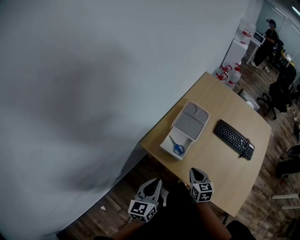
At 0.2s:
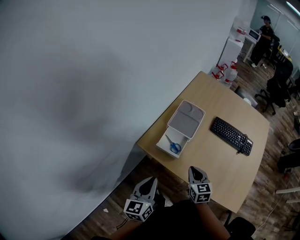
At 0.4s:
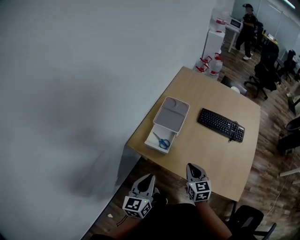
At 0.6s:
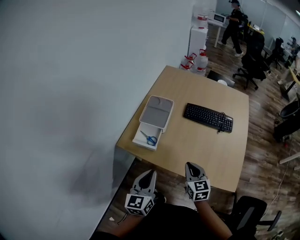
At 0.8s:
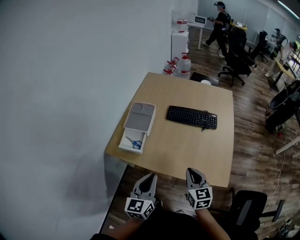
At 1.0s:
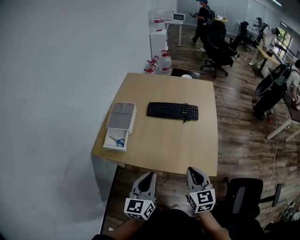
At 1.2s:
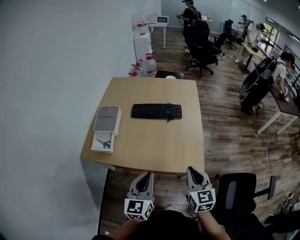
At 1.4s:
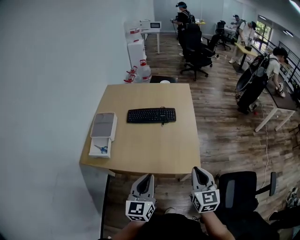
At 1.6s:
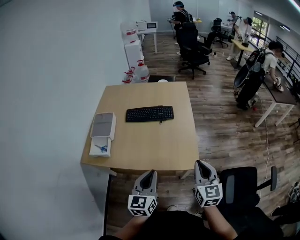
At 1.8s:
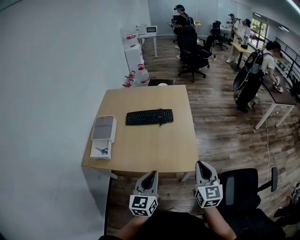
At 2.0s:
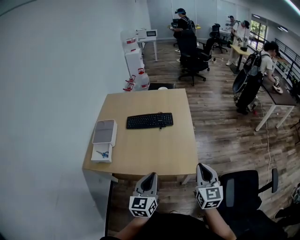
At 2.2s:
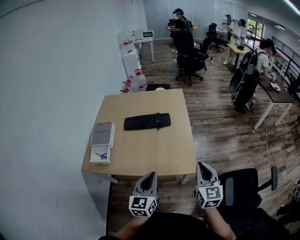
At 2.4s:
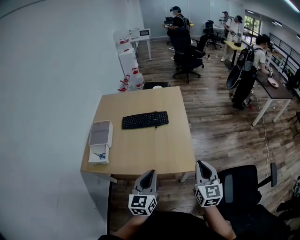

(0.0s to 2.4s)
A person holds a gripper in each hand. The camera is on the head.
0.0s - 1.2s: The left gripper moves roughly 40 cm, and rotates approximately 30 degrees. Meanwhile the right gripper ends up some 50 cm from where it was, and changes its angle by about 40 degrees.
1.2s - 2.4s: Both grippers move to the right, about 10 cm.

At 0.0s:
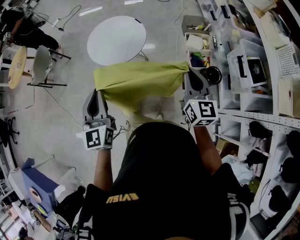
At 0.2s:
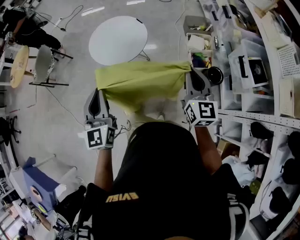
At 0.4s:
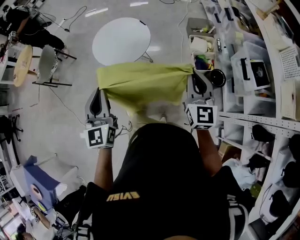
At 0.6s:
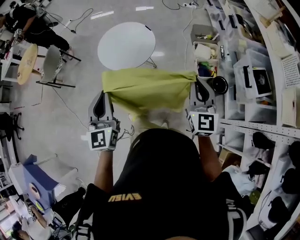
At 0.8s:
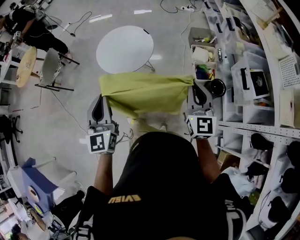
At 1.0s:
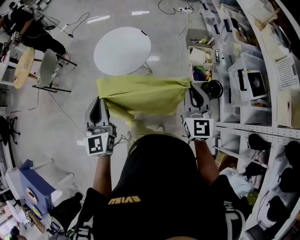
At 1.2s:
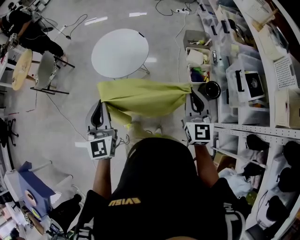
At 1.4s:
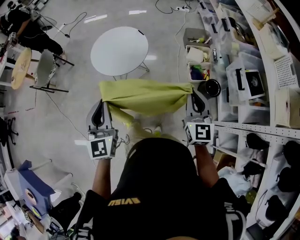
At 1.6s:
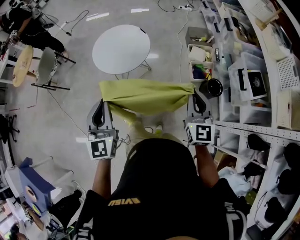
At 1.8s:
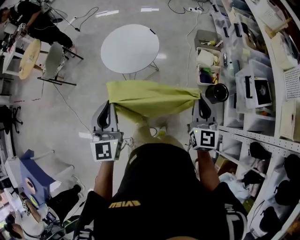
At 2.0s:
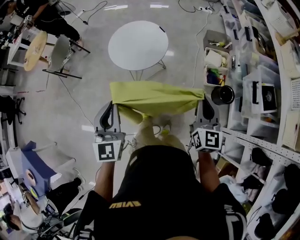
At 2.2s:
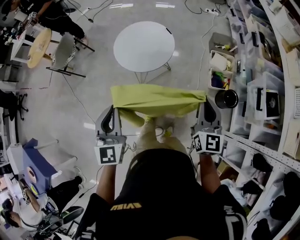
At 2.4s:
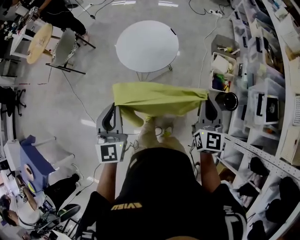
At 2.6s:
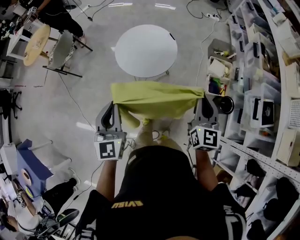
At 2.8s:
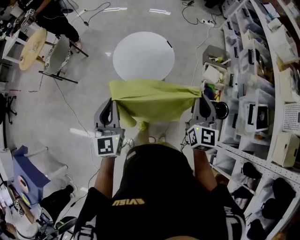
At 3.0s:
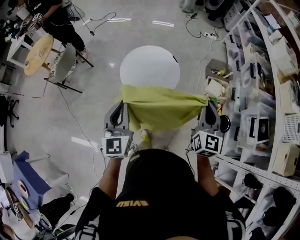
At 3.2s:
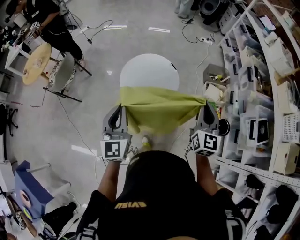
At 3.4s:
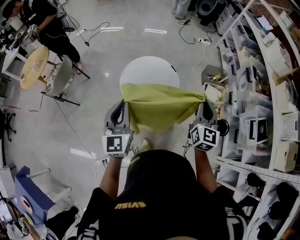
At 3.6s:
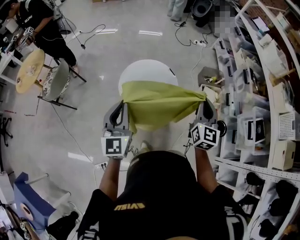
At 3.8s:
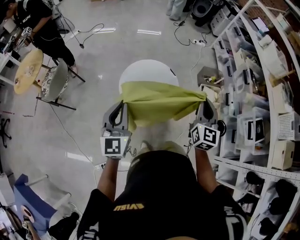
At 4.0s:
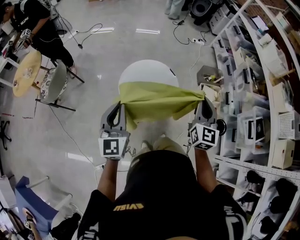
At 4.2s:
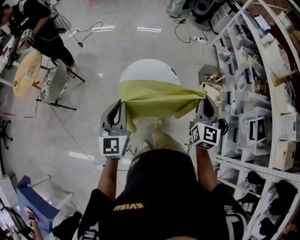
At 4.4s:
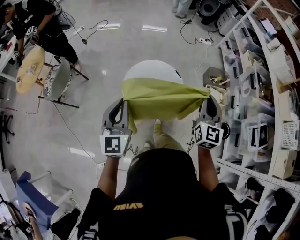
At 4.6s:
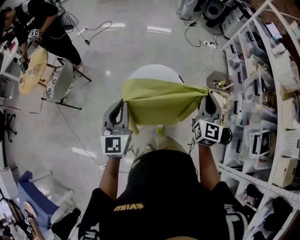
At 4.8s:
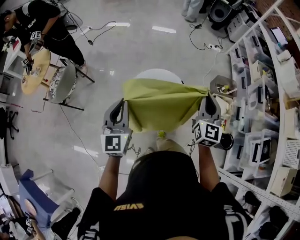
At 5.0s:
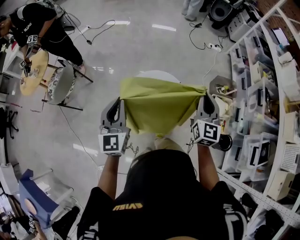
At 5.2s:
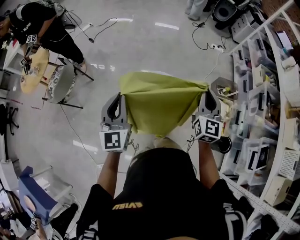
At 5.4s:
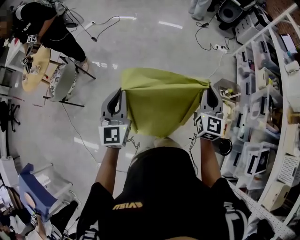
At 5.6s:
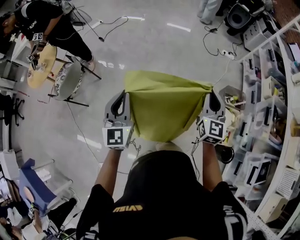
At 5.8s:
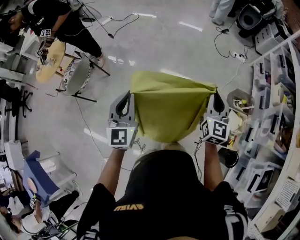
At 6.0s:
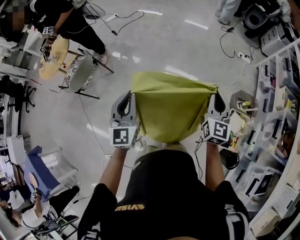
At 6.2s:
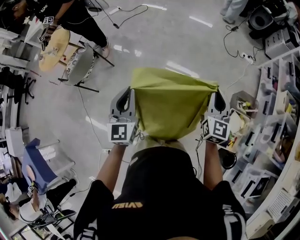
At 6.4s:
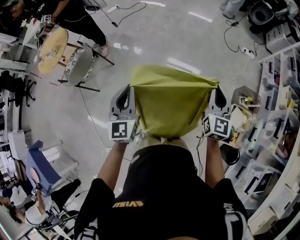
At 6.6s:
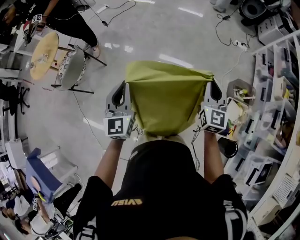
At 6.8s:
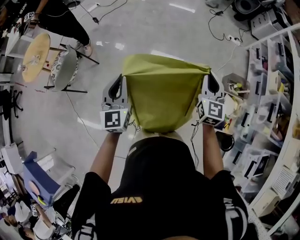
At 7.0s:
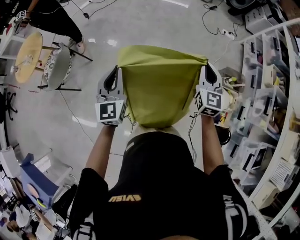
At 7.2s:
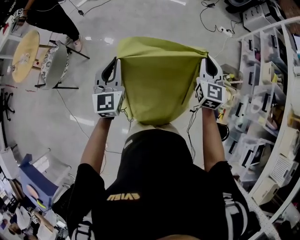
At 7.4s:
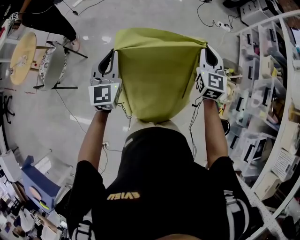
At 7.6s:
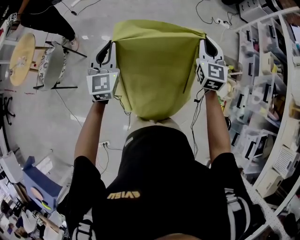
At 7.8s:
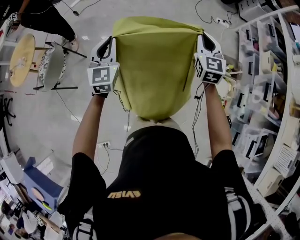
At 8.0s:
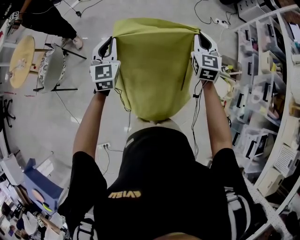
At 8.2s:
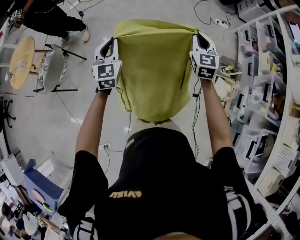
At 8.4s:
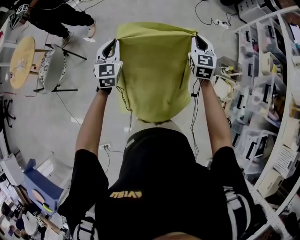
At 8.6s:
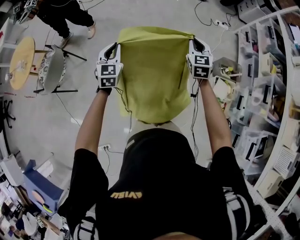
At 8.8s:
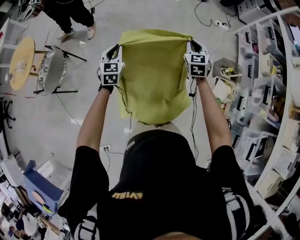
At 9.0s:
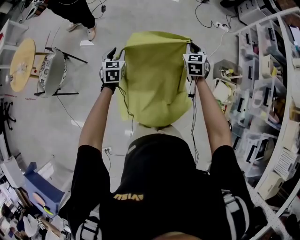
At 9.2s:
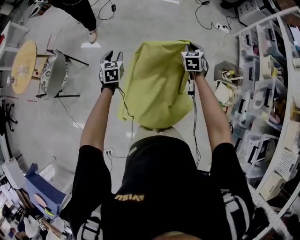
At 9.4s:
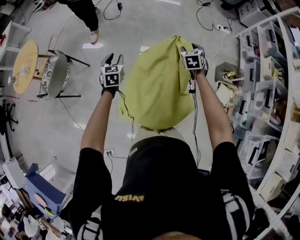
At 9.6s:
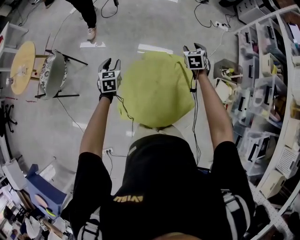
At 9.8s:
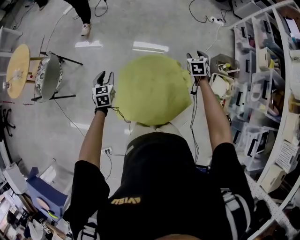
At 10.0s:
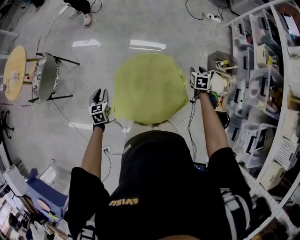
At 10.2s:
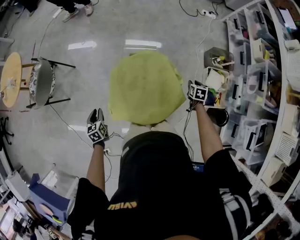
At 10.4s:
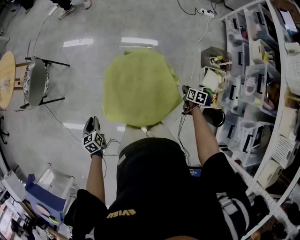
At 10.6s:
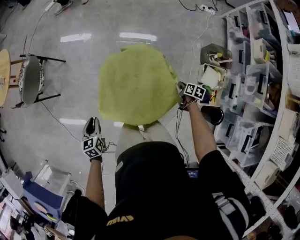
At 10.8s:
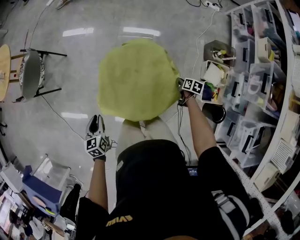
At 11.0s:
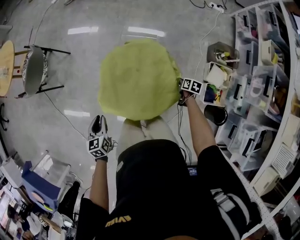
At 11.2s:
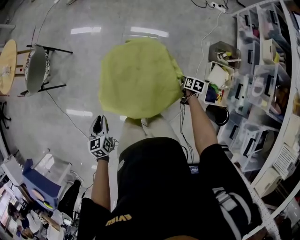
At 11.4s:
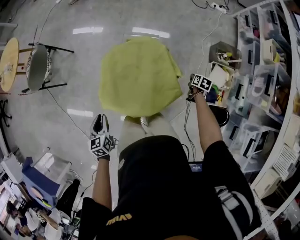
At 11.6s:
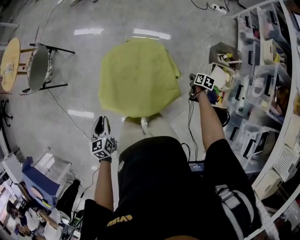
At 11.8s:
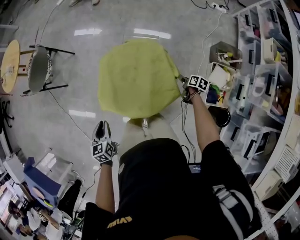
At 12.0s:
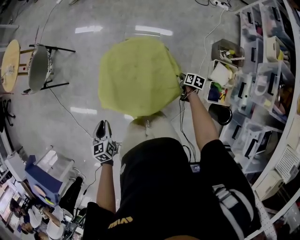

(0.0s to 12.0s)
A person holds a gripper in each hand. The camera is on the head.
0.0s - 1.6s: The grippers move only a little.
1.6s - 3.0s: Both grippers travel together forward and to the left, some 20 cm.
3.0s - 4.4s: Both grippers move forward and to the left, some 15 cm.
4.4s - 6.0s: The two grippers go roughly 25 cm forward.
6.0s - 7.6s: Both grippers move forward, about 10 cm.
7.6s - 9.0s: Both grippers move downward and forward, approximately 20 cm. The left gripper rotates about 30 degrees, and opens up. Meanwhile the right gripper changes its angle by roughly 20 degrees.
9.0s - 10.4s: The left gripper travels backward and downward by some 35 cm, and changes its angle by about 30 degrees; the right gripper heads downward, backward and to the right, covering approximately 40 cm, twists roughly 40 degrees clockwise, seen from behind, and opens, then closes once more.
10.4s - 12.0s: The right gripper heads downward, covering about 10 cm, goes to the right and returns, about 5 cm each way, and closes. Meanwhile the left gripper is displaced to the right and backward by about 15 cm.

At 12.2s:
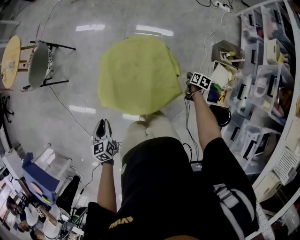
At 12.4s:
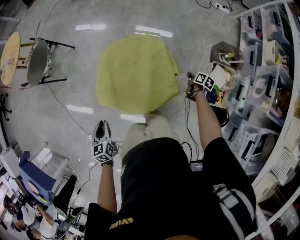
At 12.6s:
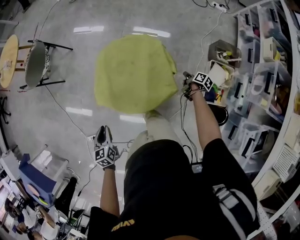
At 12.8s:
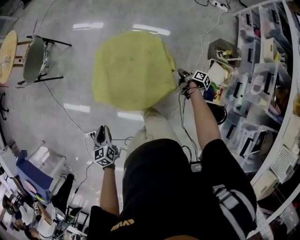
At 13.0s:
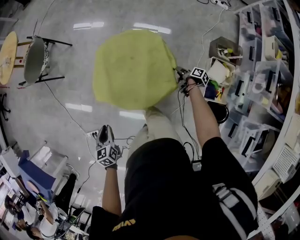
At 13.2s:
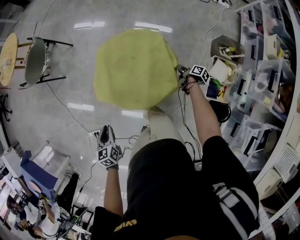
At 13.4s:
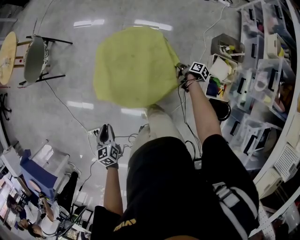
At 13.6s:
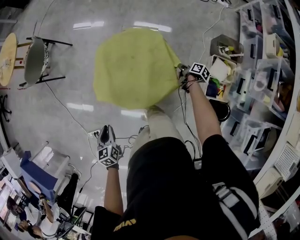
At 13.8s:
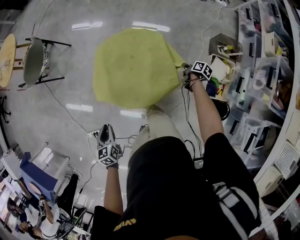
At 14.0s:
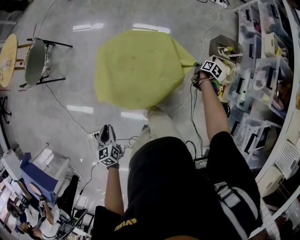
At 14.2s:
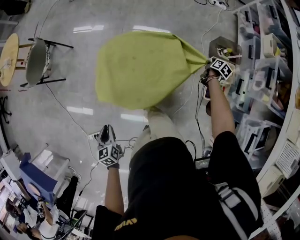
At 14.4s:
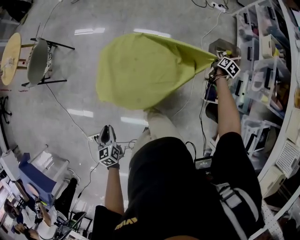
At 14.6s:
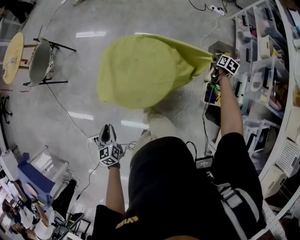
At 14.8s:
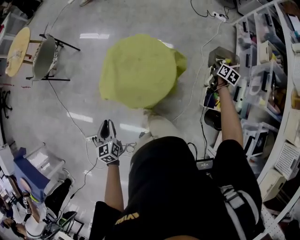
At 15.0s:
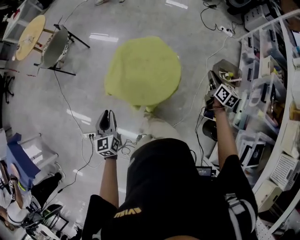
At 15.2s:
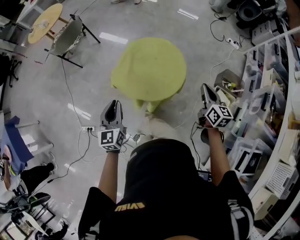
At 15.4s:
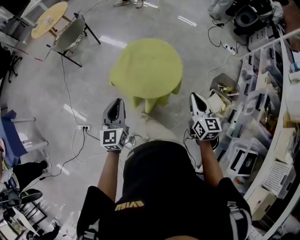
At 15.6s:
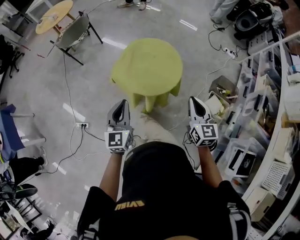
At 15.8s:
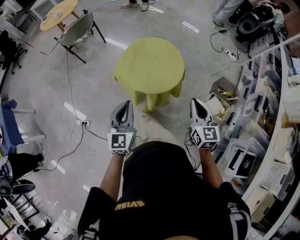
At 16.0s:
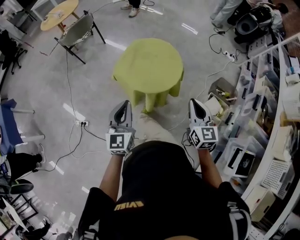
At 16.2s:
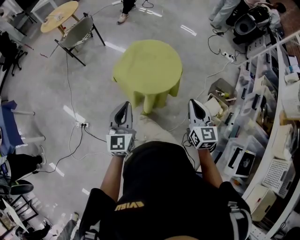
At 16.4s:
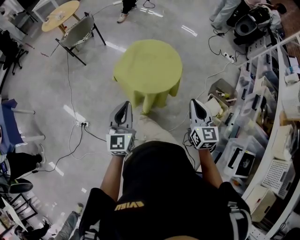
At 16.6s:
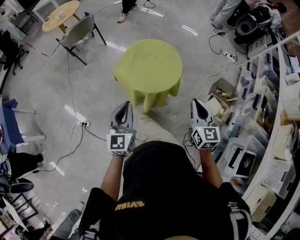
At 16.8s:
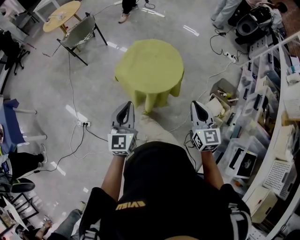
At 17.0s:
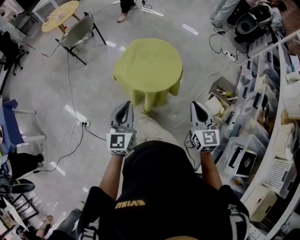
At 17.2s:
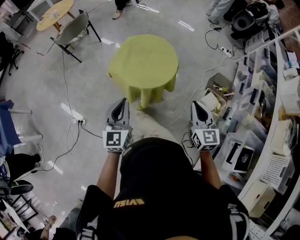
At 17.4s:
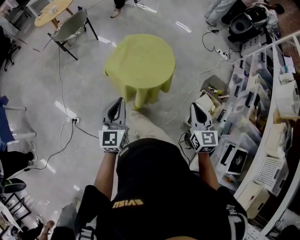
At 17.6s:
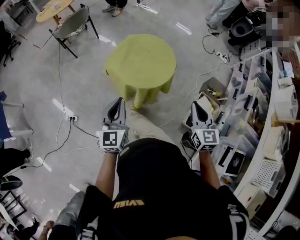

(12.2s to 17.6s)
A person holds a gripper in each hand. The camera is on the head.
12.2s - 13.6s: The right gripper rotates about 30 degrees, and opens and closes again; the left gripper goes some 10 cm backward.
13.6s - 15.0s: The right gripper moves upward, roughly 30 cm, rolls counterclockwise, seen from behind, by approximately 50 degrees, and opens and closes again, while the left gripper shifts roughly 10 cm upward, and rotates approximately 20 degrees.
15.0s - 16.2s: The left gripper is displaced backward and upward by about 25 cm. Meanwhile the right gripper heads backward, to the left and upward, covering roughly 35 cm, and turns by roughly 40 degrees.
16.2s - 17.6s: There are only small adjustments of the grippers.

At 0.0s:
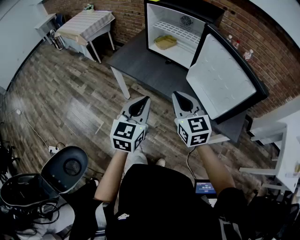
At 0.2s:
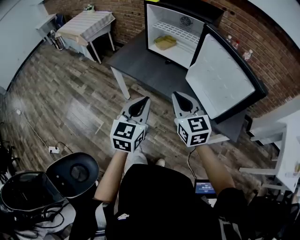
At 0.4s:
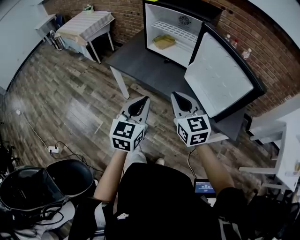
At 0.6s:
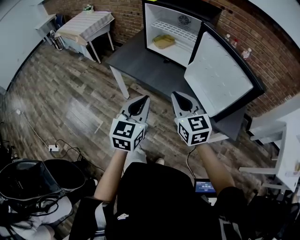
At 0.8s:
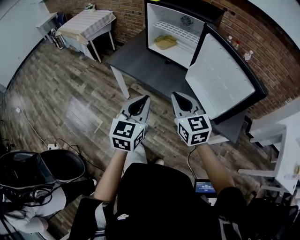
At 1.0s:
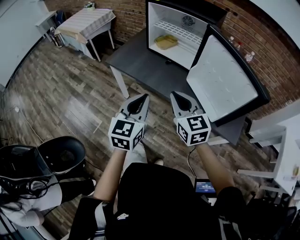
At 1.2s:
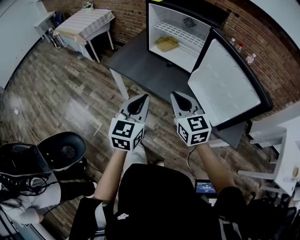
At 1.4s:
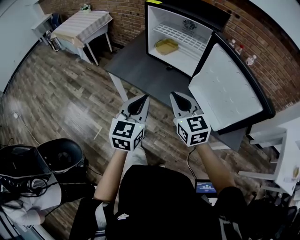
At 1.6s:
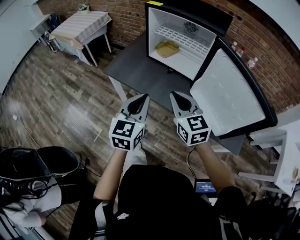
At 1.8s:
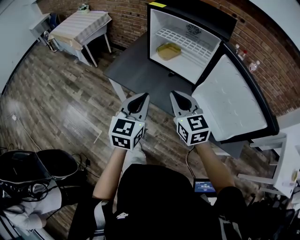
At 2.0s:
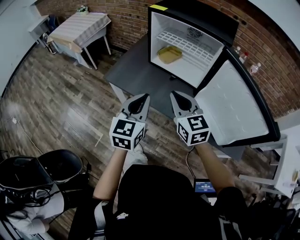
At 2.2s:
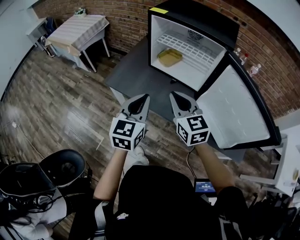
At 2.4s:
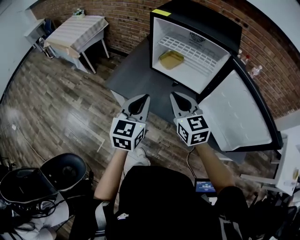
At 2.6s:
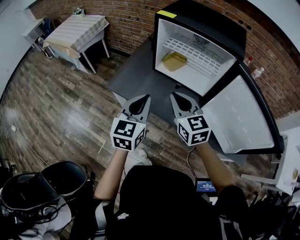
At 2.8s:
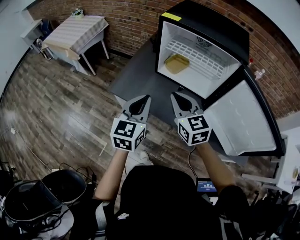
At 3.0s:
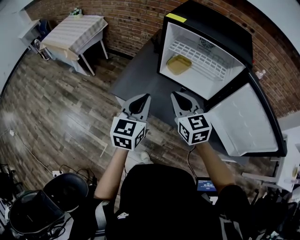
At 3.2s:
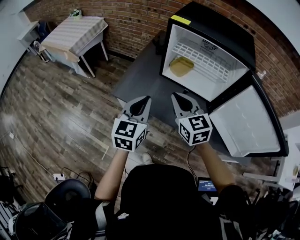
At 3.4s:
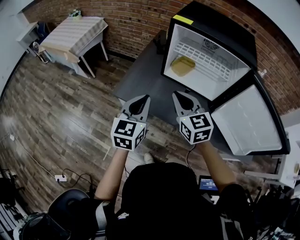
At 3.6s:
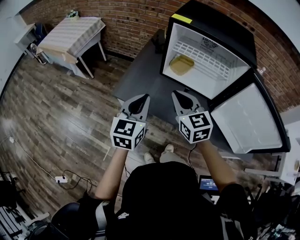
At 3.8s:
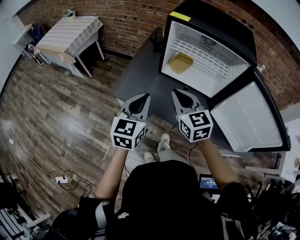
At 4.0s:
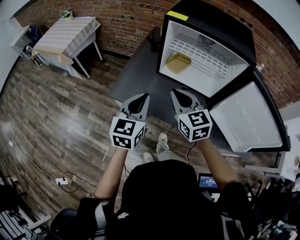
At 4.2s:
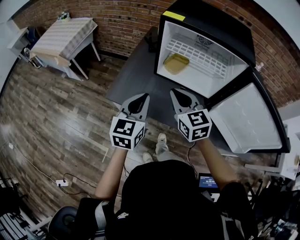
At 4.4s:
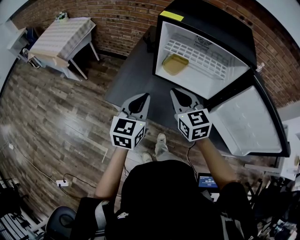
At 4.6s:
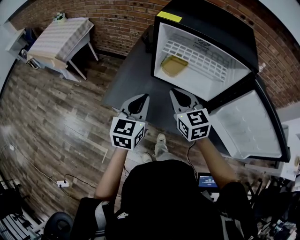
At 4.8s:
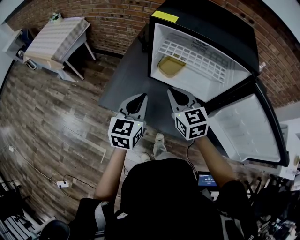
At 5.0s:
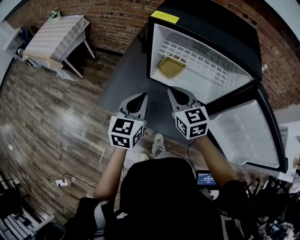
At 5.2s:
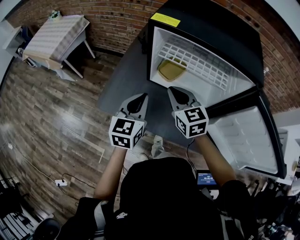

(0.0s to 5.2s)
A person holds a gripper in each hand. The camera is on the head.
0.0s - 1.8s: The grippers both shift forward by roughly 15 cm.
1.8s - 3.4s: The grippers both shift forward and to the left by some 20 cm.
3.4s - 5.2s: Both grippers travel together forward and to the right, some 15 cm.
